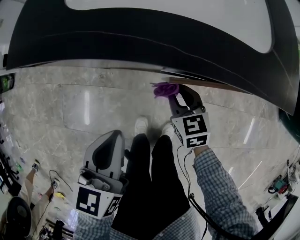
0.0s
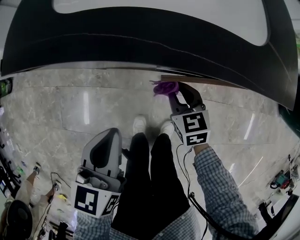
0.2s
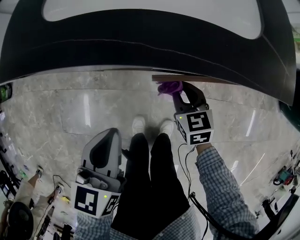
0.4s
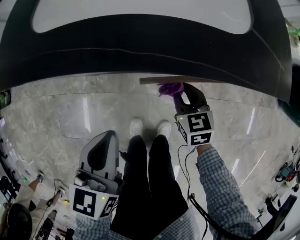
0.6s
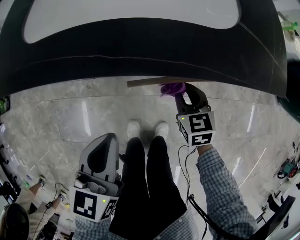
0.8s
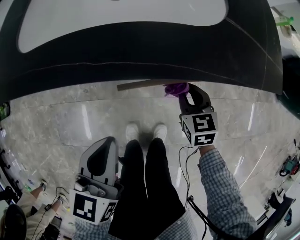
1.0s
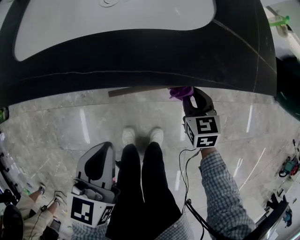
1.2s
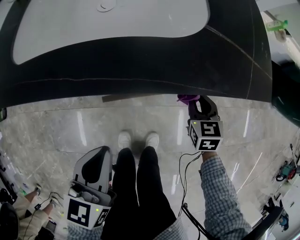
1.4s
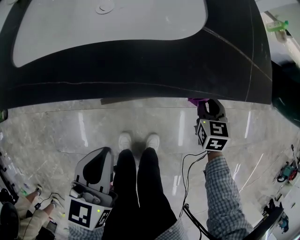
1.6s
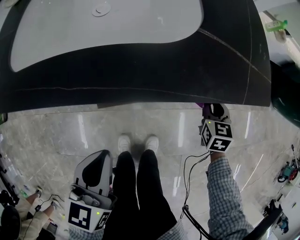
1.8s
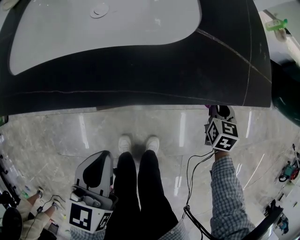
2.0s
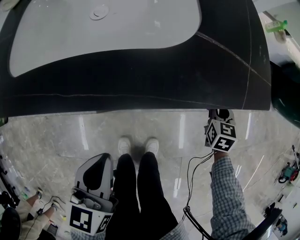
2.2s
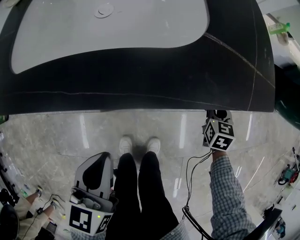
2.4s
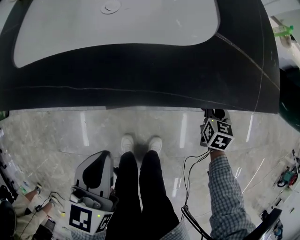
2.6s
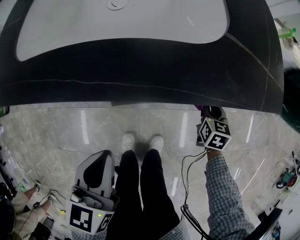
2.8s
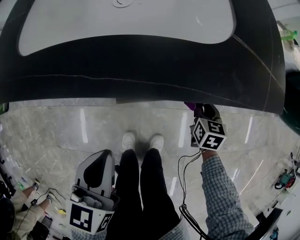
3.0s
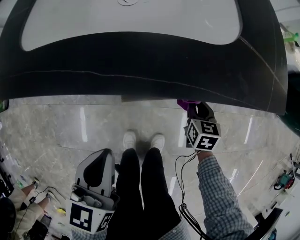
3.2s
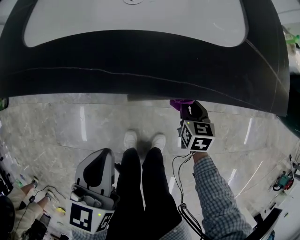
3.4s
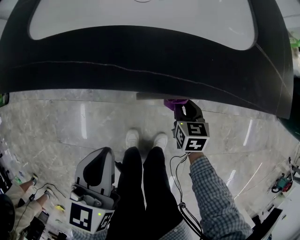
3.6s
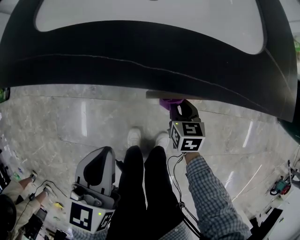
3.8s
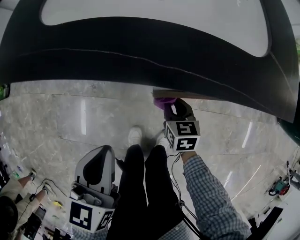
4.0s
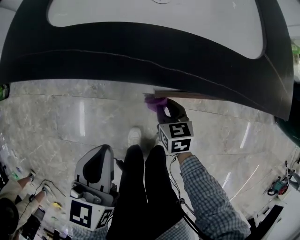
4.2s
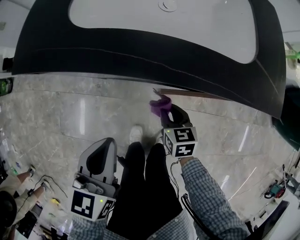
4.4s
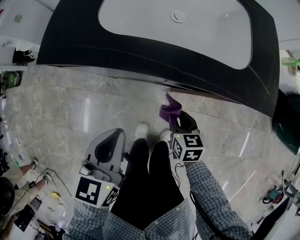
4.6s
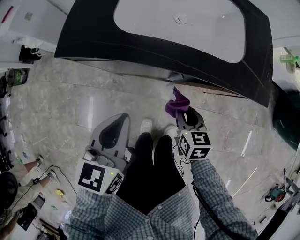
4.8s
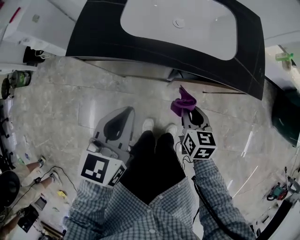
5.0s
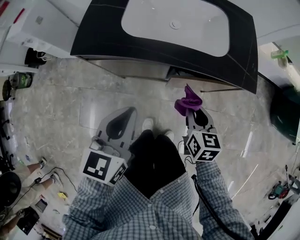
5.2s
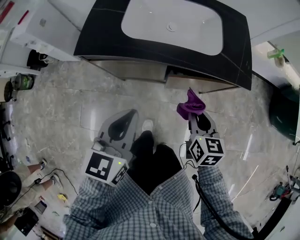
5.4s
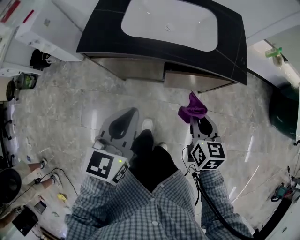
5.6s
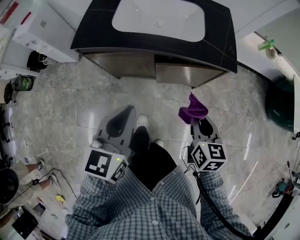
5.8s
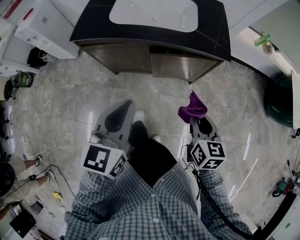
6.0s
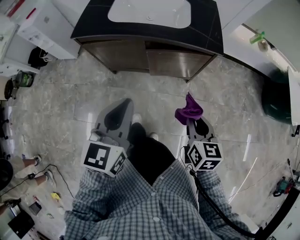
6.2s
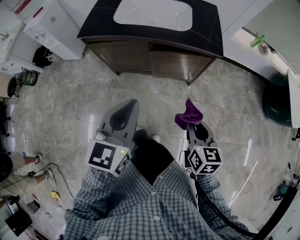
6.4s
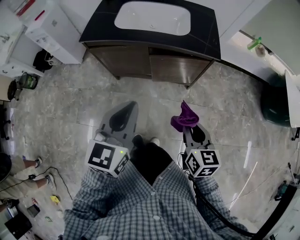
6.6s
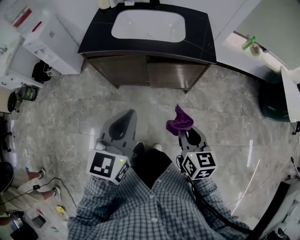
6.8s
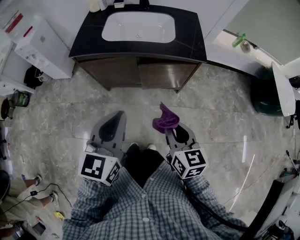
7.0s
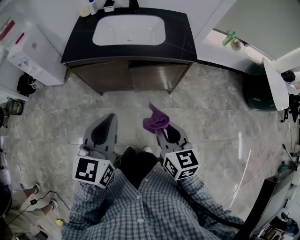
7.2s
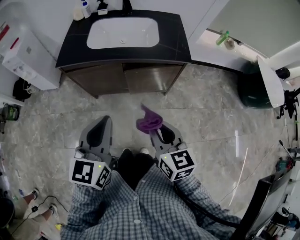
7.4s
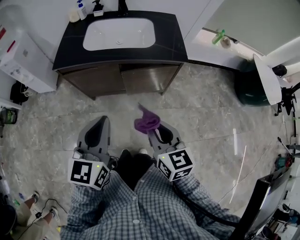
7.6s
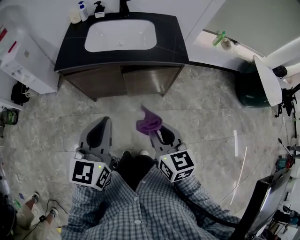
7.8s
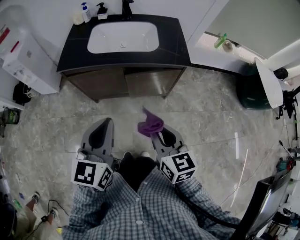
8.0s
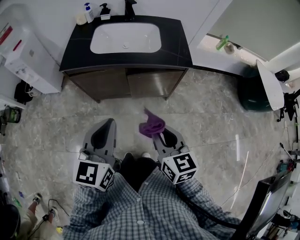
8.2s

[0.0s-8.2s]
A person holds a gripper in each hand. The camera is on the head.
0.0s to 1.6s: The left gripper moves to the right, roughly 10 cm; the right gripper moves to the right, about 30 cm, and rotates some 30 degrees.
1.6s to 3.2s: The right gripper heads to the left and downward, covering roughly 10 cm.
3.2s to 5.0s: The grippers both shift upward and to the left by roughly 25 cm.
5.0s to 6.6s: The right gripper heads backward, upward and to the right, covering approximately 35 cm. The left gripper heads backward, to the right and upward, covering roughly 30 cm.
6.6s to 8.2s: The right gripper travels to the left and upward by about 10 cm.

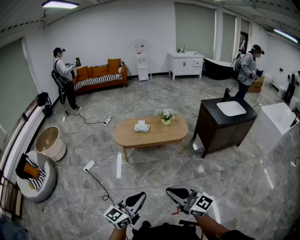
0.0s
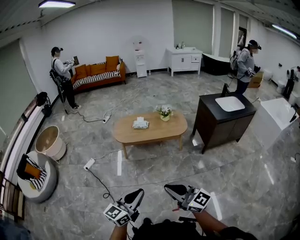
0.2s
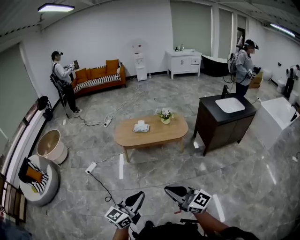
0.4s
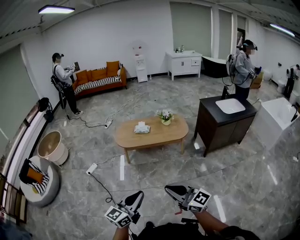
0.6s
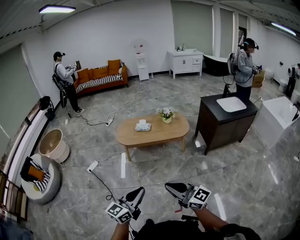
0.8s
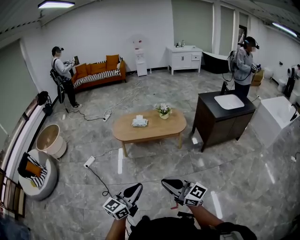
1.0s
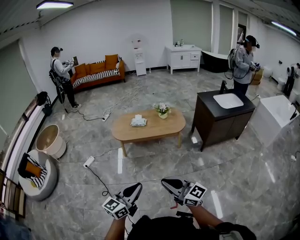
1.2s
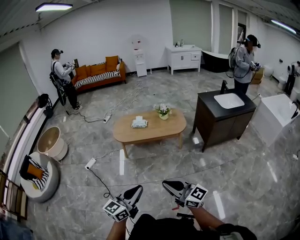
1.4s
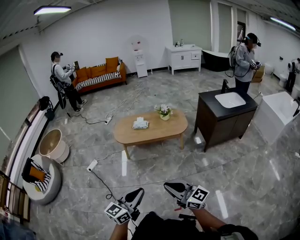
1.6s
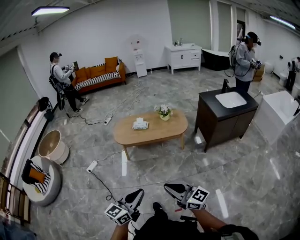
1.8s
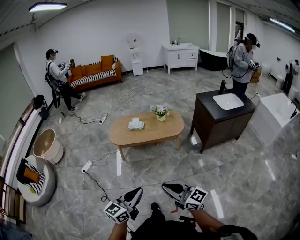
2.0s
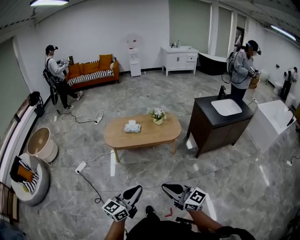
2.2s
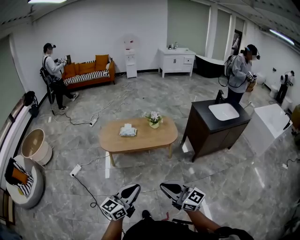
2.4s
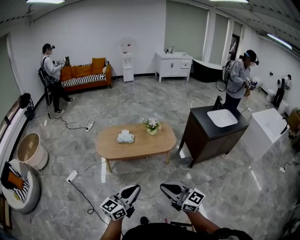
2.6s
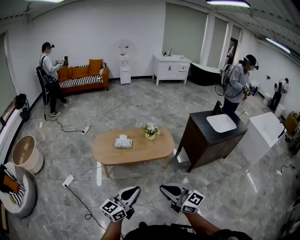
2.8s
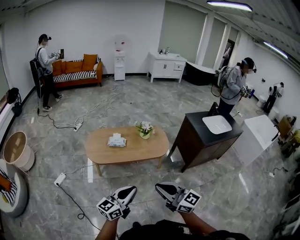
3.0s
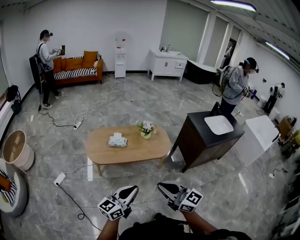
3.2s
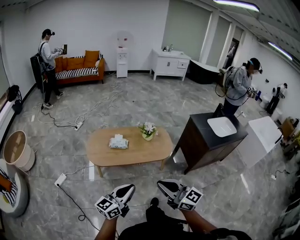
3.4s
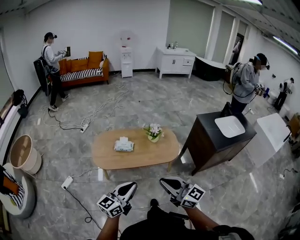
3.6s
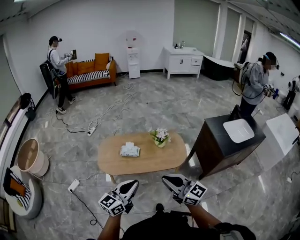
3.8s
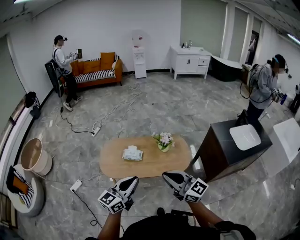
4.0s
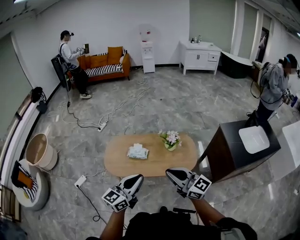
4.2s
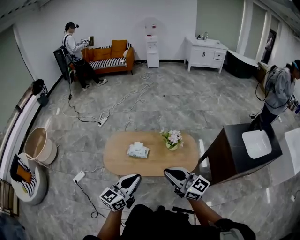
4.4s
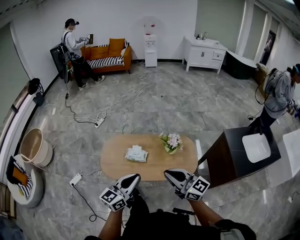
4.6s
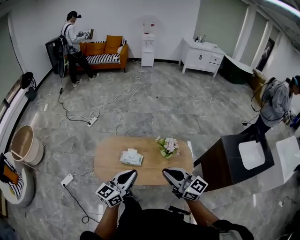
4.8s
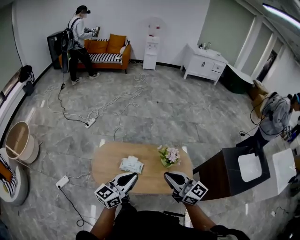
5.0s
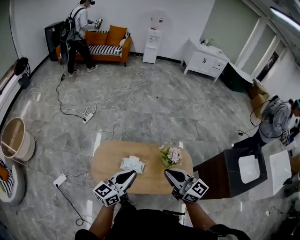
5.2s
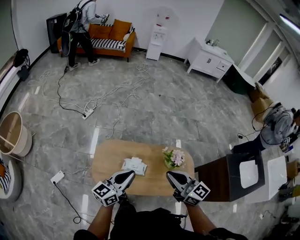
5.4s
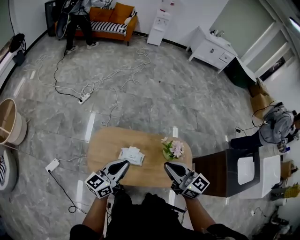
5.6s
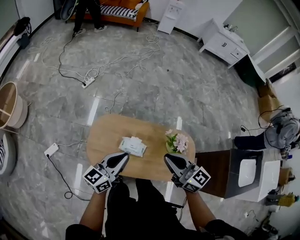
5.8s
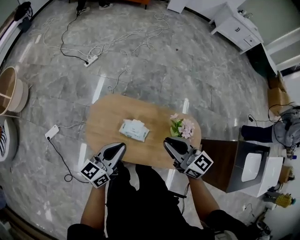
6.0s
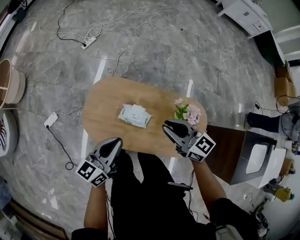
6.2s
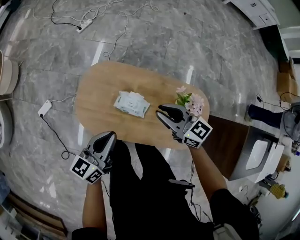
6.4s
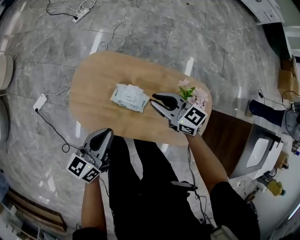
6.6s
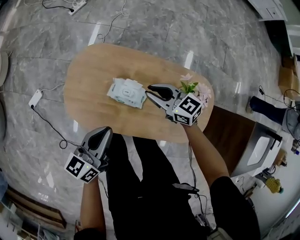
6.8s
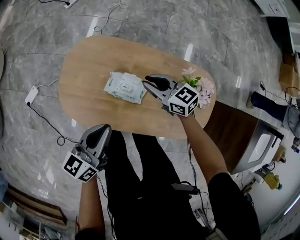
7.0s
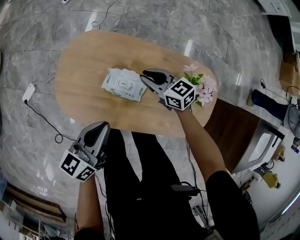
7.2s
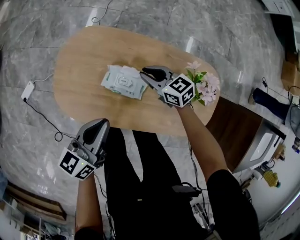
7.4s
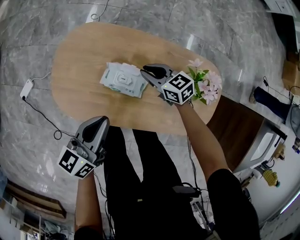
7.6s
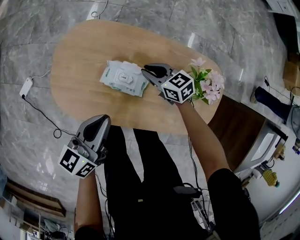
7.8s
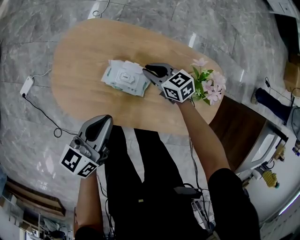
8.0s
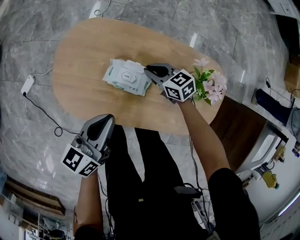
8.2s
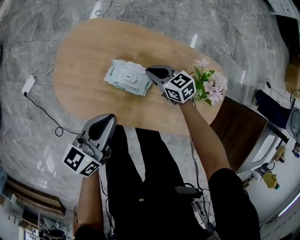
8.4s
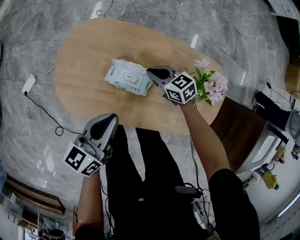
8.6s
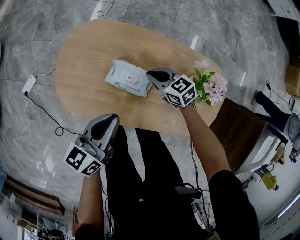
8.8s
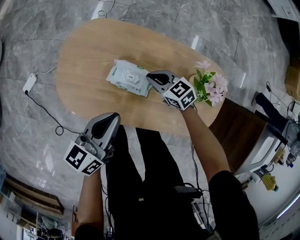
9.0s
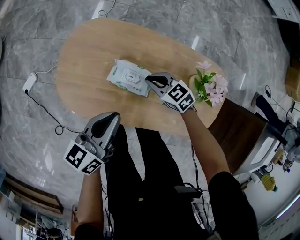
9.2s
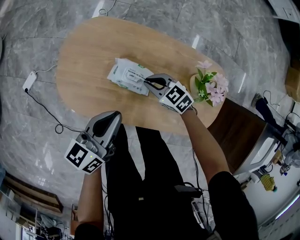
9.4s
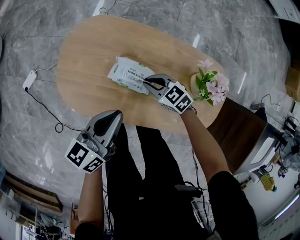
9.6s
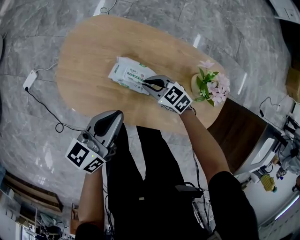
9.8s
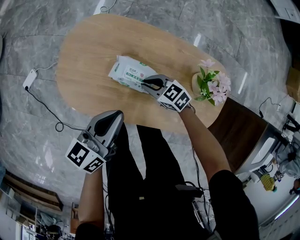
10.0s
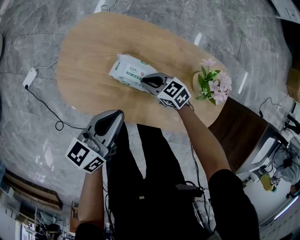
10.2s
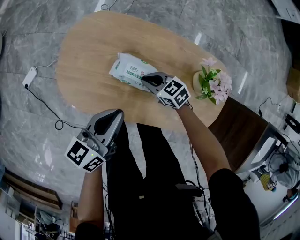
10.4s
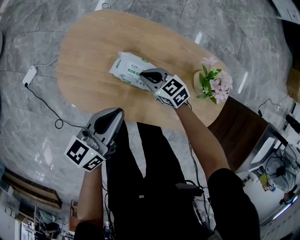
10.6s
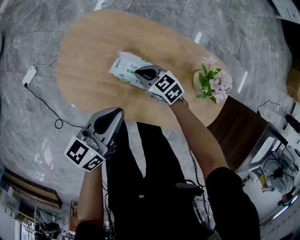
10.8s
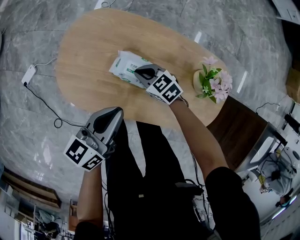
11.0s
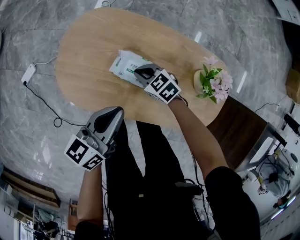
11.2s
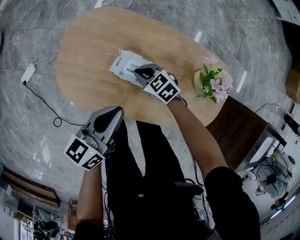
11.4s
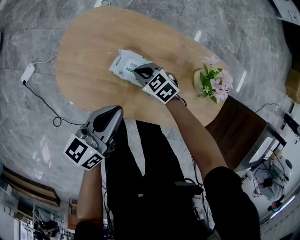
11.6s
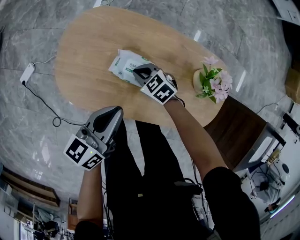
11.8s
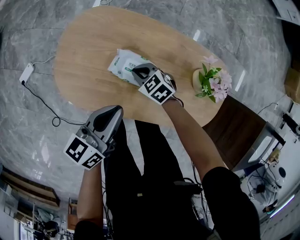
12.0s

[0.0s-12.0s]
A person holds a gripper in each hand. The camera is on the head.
0.0s to 1.6s: The right gripper ends up approximately 5 cm from where it was.
1.6s to 3.0s: Both grippers move forward, roughly 30 cm.
3.0s to 4.4s: The two grippers go roughly 35 cm forward.
4.4s to 6.0s: The left gripper moves forward, downward and to the left, approximately 40 cm, and changes its angle by about 20 degrees. The right gripper shifts about 35 cm forward, and rotates roughly 20 degrees.
6.0s to 7.6s: The right gripper goes roughly 40 cm downward, and rotates approximately 30 degrees; the left gripper moves downward, roughly 25 cm.
7.6s to 9.0s: The grippers stay close to where they were, moving slightly.
9.0s to 10.4s: The right gripper shifts by about 5 cm.
10.4s to 12.0s: The grippers move only a little.

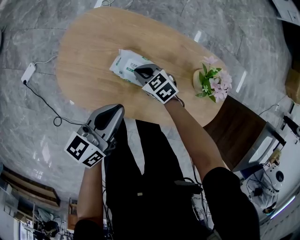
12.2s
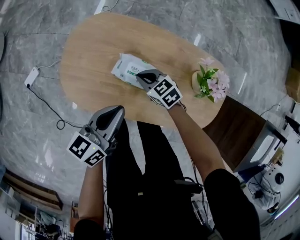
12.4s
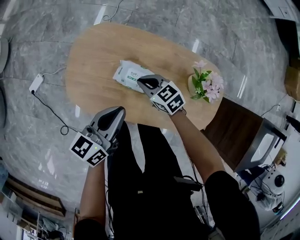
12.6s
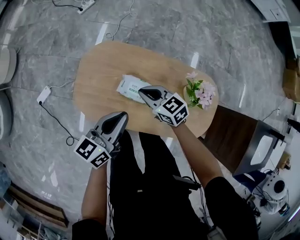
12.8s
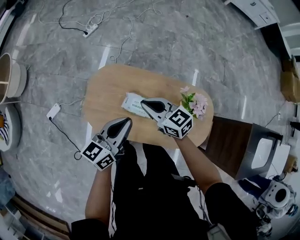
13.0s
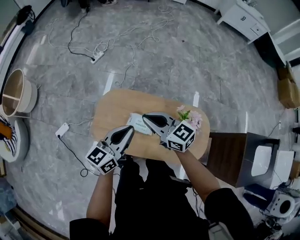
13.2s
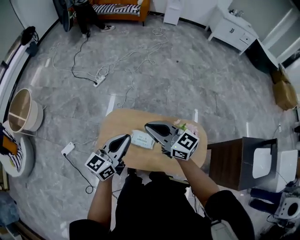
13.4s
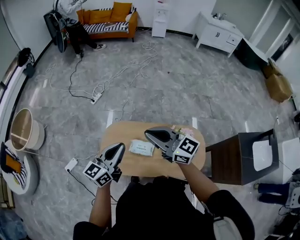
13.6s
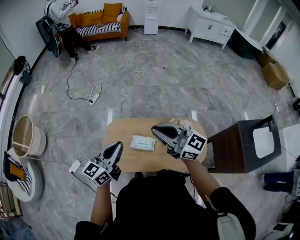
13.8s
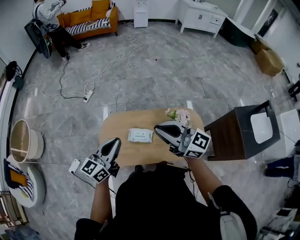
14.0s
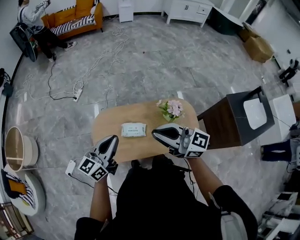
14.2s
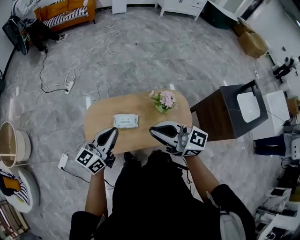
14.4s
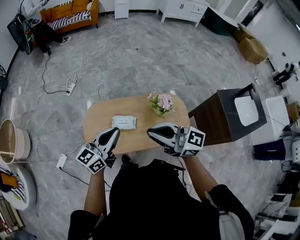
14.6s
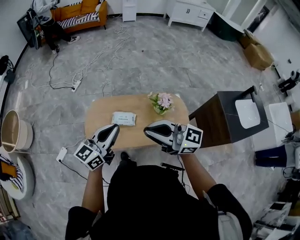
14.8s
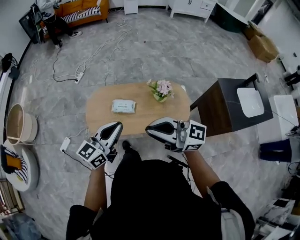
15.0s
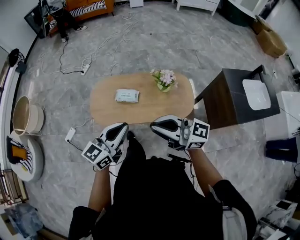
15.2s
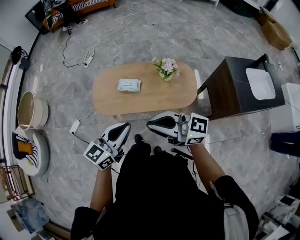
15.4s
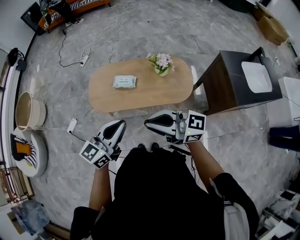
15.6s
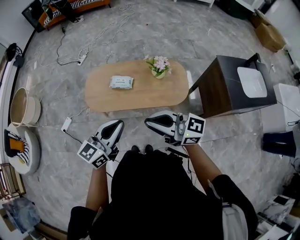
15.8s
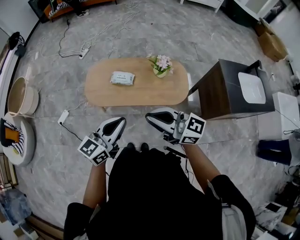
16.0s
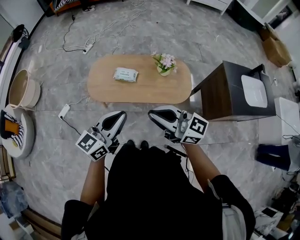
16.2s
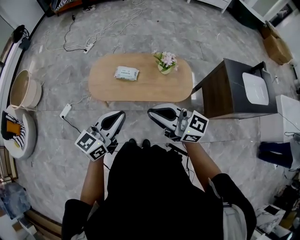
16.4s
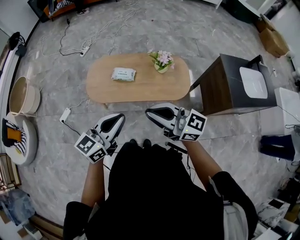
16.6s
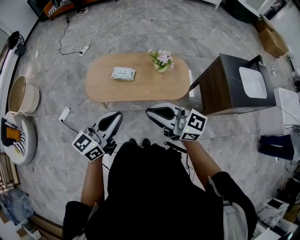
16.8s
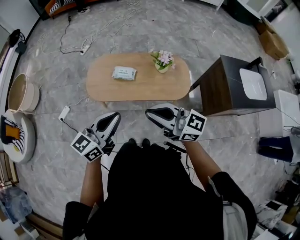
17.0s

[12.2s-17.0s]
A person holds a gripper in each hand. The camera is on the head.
12.2s to 13.8s: The right gripper goes roughly 70 cm upward, and points its fingers roughly 60 degrees further upward. Meanwhile the left gripper travels upward by approximately 40 cm, and turns by about 30 degrees.
13.8s to 15.4s: Both grippers travel together backward, roughly 35 cm.
15.4s to 17.0s: The left gripper goes approximately 5 cm backward.
